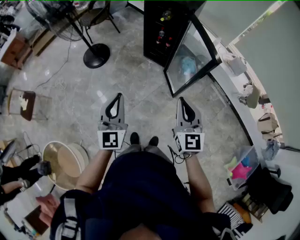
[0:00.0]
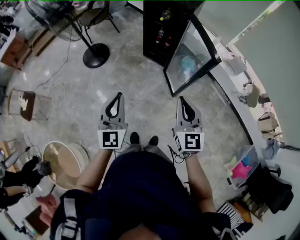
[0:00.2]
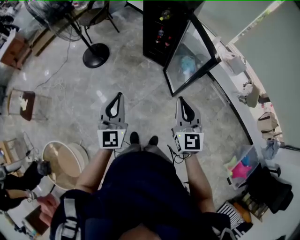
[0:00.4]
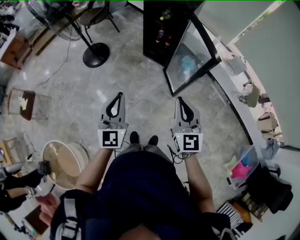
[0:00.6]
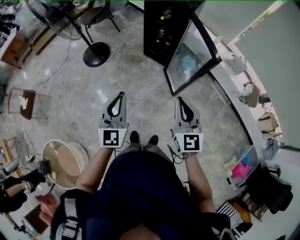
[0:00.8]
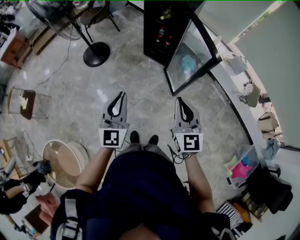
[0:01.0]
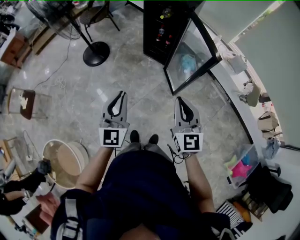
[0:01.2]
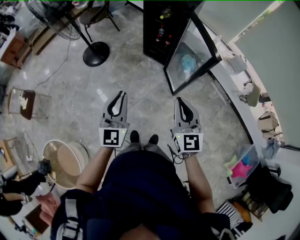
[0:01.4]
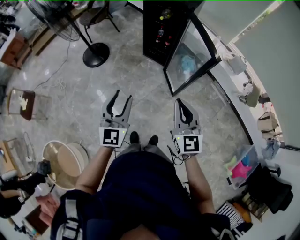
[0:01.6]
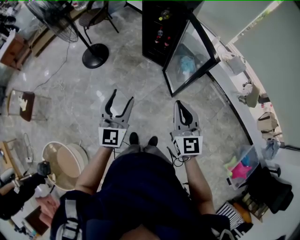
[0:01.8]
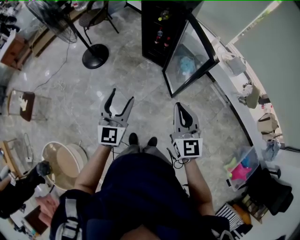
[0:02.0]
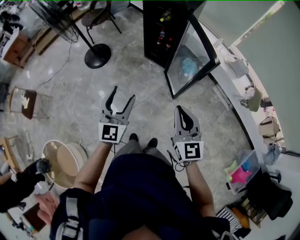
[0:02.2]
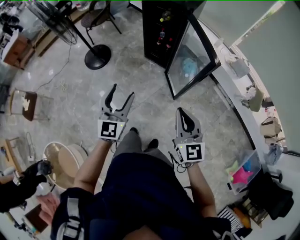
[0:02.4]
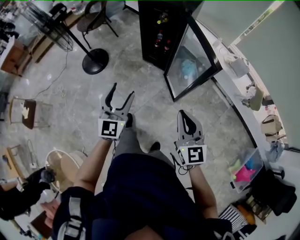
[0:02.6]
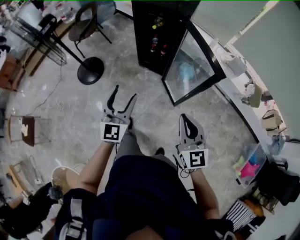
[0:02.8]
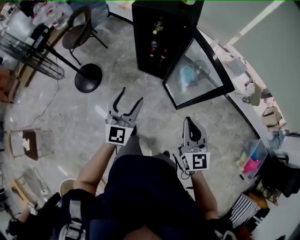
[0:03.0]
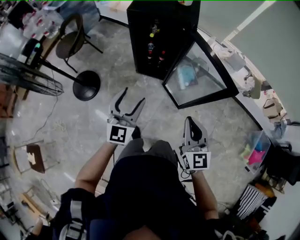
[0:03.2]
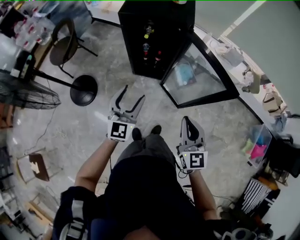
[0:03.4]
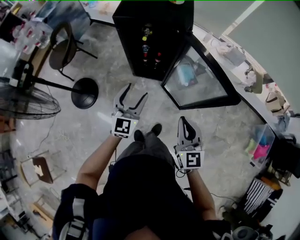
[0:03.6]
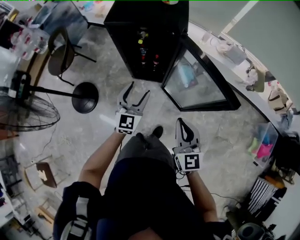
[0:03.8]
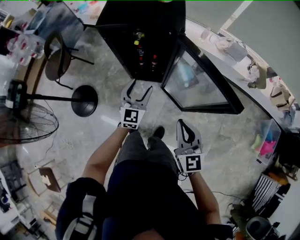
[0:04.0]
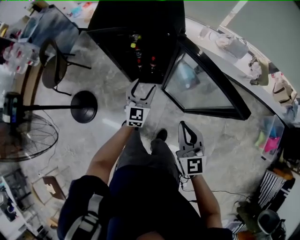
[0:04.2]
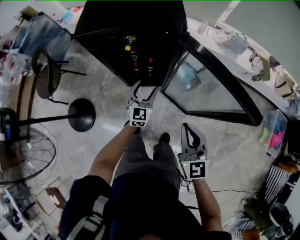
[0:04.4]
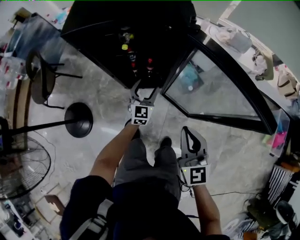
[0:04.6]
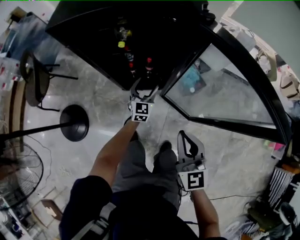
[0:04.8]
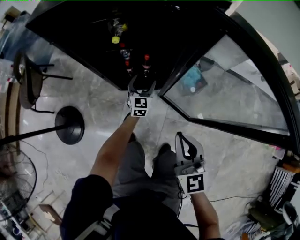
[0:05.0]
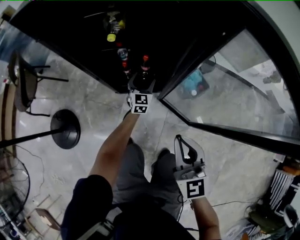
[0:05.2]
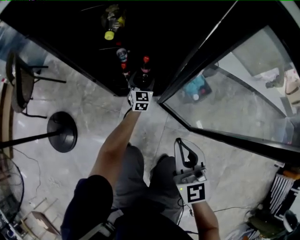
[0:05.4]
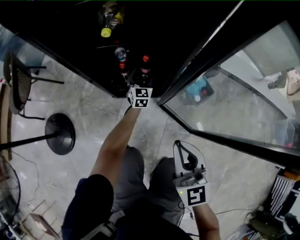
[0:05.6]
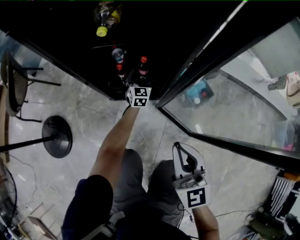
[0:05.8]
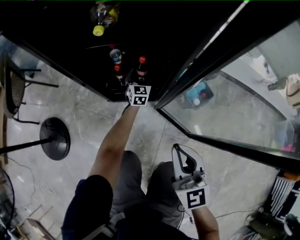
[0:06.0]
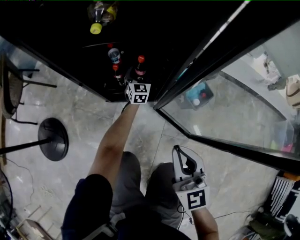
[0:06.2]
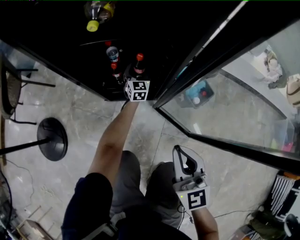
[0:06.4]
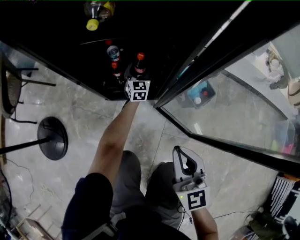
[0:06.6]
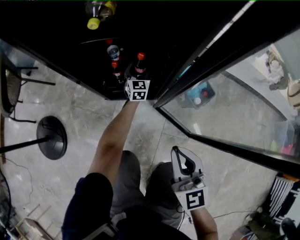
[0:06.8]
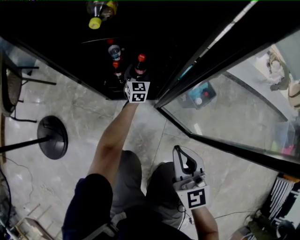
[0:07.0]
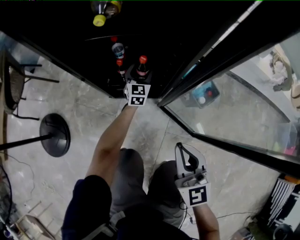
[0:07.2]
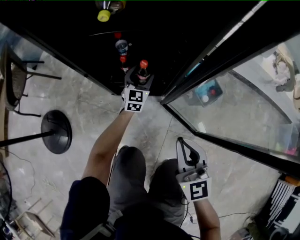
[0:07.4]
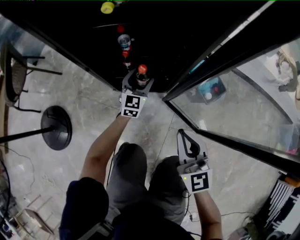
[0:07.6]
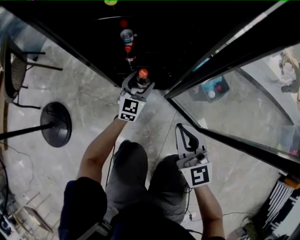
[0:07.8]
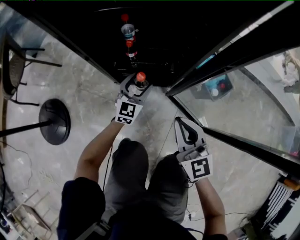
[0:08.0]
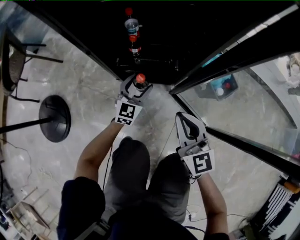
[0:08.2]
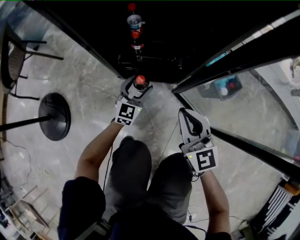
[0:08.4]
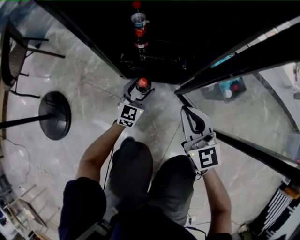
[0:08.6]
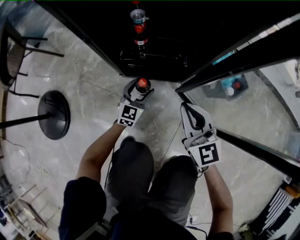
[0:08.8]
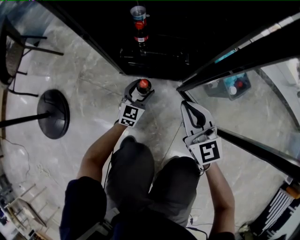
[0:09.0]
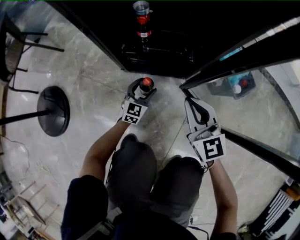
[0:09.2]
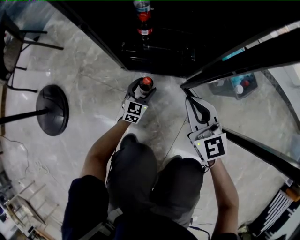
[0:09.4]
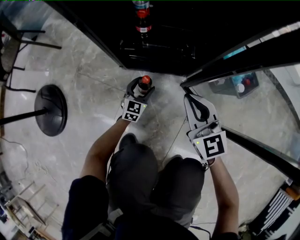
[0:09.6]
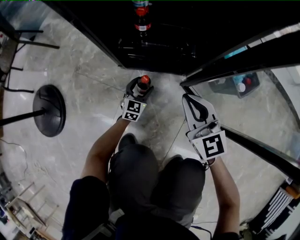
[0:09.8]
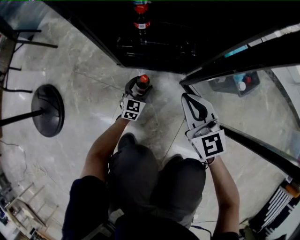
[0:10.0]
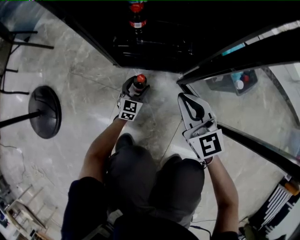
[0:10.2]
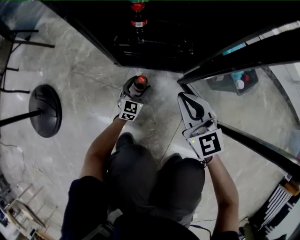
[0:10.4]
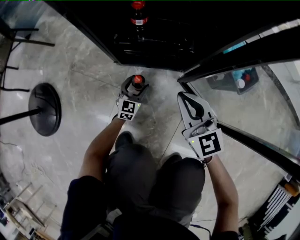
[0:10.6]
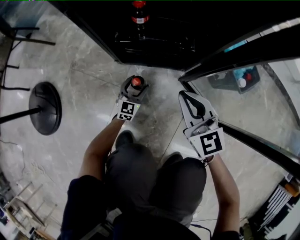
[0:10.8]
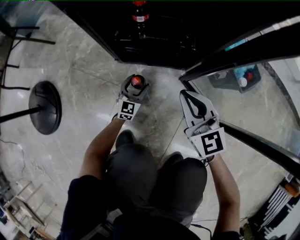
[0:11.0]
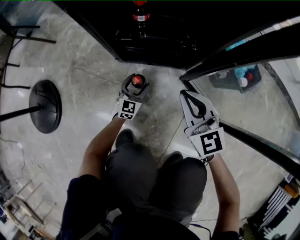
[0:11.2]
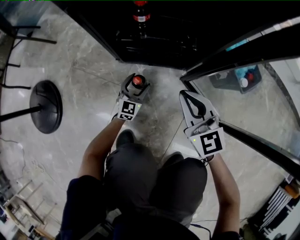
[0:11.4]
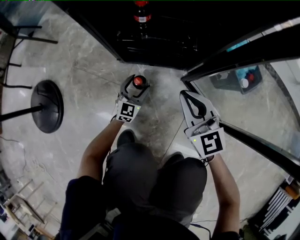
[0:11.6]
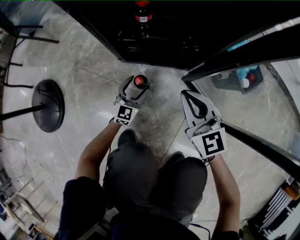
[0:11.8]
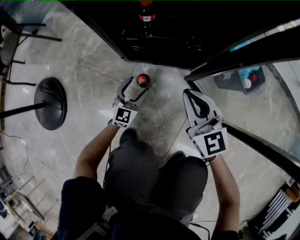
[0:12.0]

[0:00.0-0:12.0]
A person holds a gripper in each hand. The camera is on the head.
0:00.0 to 0:01.6: The left gripper opens its fingers.
0:01.6 to 0:03.0: The left gripper is displaced forward by some 25 cm, while the right gripper is displaced forward by roughly 15 cm.
0:03.0 to 0:04.4: The left gripper travels forward and downward by about 50 cm, and turns by about 20 degrees; the right gripper goes roughly 30 cm forward and downward.
0:04.4 to 0:06.0: The left gripper shifts about 50 cm downward and forward. The right gripper shifts some 30 cm downward.
0:06.0 to 0:07.6: The right gripper shifts roughly 10 cm downward, while the left gripper heads backward, covering about 10 cm.
0:07.6 to 0:09.0: The left gripper moves downward and backward, some 20 cm. Meanwhile the right gripper goes approximately 15 cm downward.
0:09.0 to 0:10.4: The right gripper goes some 5 cm downward. Meanwhile the left gripper travels downward by about 10 cm.
0:10.4 to 0:12.0: The left gripper goes about 5 cm upward.

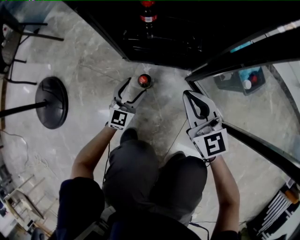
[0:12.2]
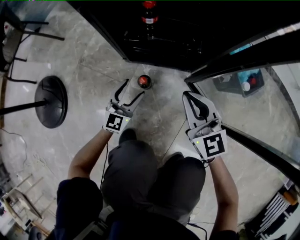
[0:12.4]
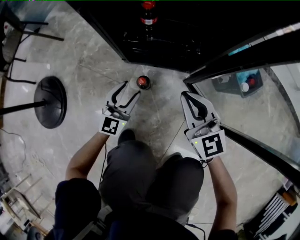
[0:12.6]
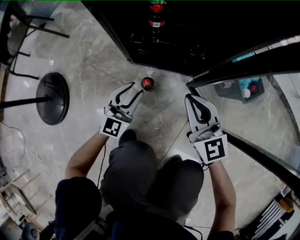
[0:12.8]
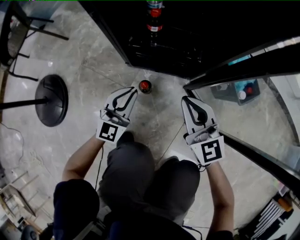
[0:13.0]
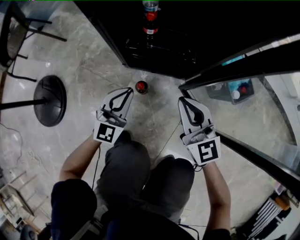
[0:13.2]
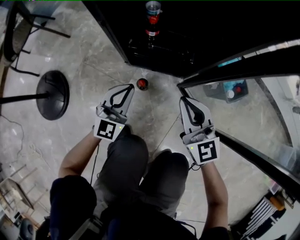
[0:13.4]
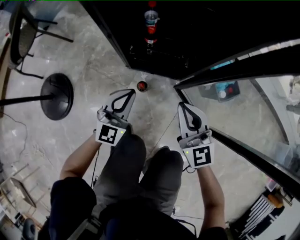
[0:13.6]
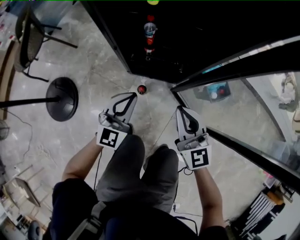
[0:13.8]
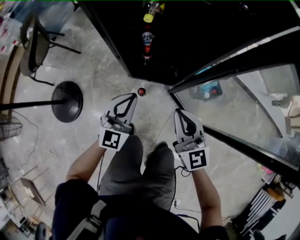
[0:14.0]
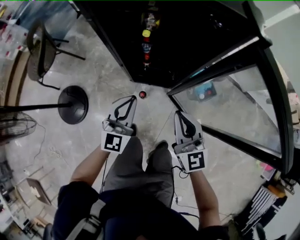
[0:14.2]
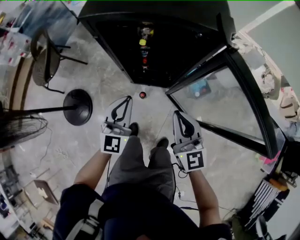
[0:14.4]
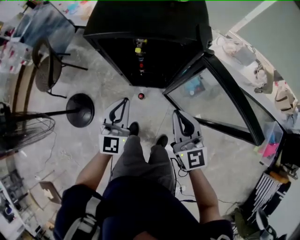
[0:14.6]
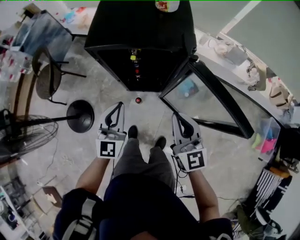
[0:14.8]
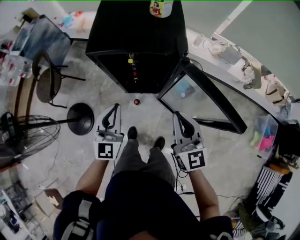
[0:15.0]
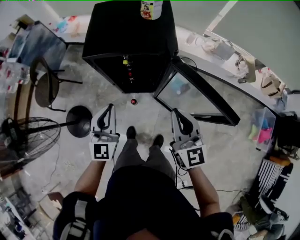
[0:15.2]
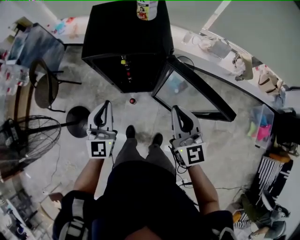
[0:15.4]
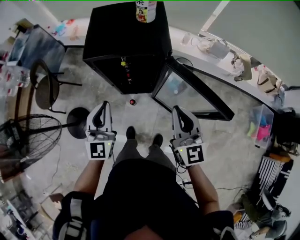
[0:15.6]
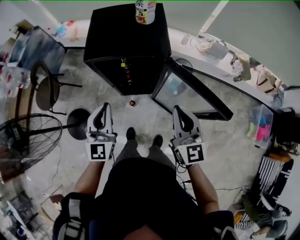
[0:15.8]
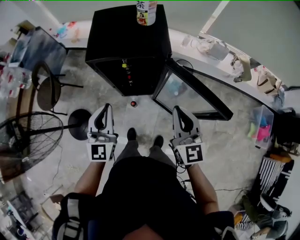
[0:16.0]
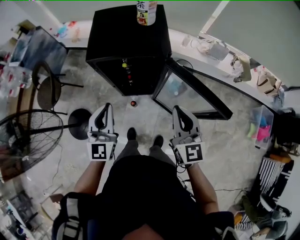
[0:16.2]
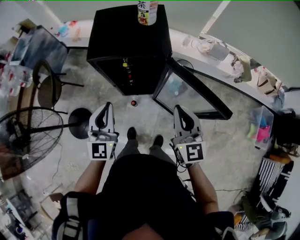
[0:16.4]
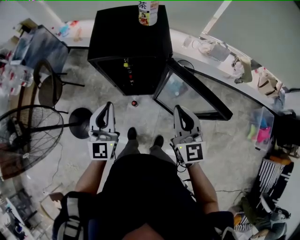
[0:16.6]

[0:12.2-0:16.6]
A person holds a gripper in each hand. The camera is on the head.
0:12.2 to 0:13.6: The right gripper travels upward by approximately 20 cm; the left gripper goes approximately 30 cm upward, and closes its fingers.
0:13.6 to 0:15.2: The two grippers go roughly 60 cm upward.
0:15.2 to 0:16.6: The left gripper heads upward, covering roughly 5 cm. The right gripper moves about 5 cm.

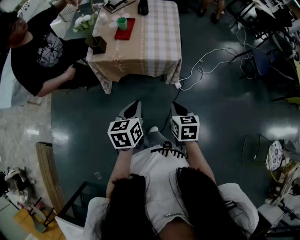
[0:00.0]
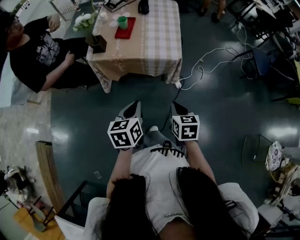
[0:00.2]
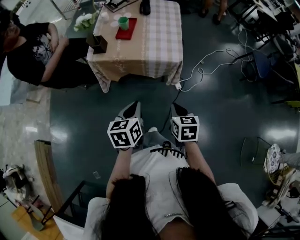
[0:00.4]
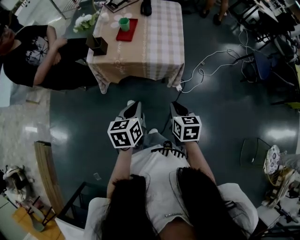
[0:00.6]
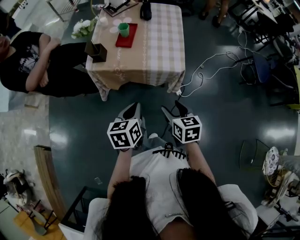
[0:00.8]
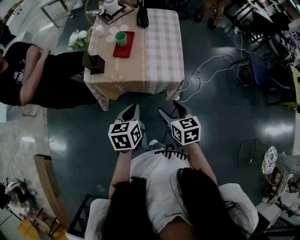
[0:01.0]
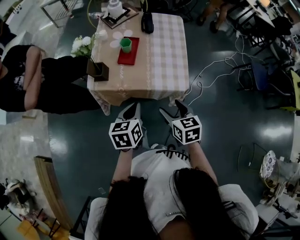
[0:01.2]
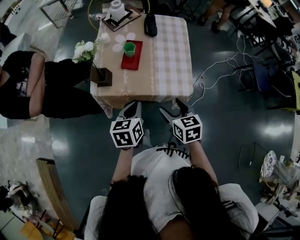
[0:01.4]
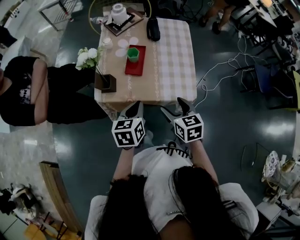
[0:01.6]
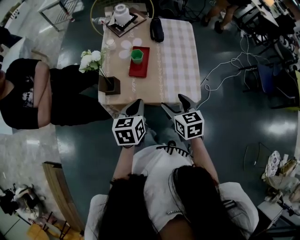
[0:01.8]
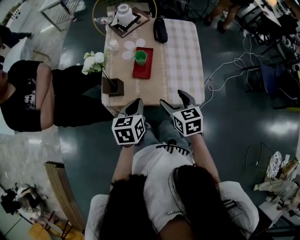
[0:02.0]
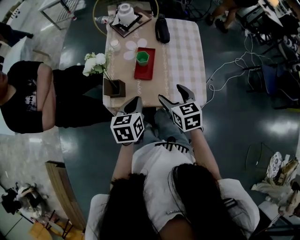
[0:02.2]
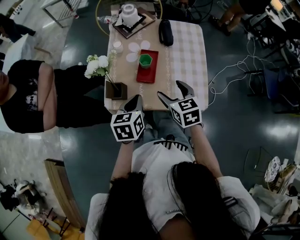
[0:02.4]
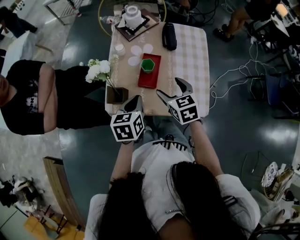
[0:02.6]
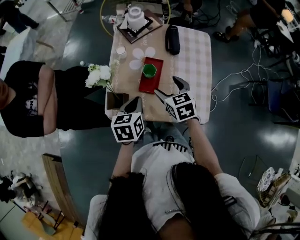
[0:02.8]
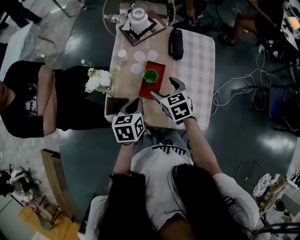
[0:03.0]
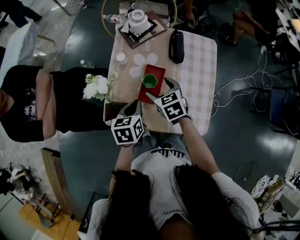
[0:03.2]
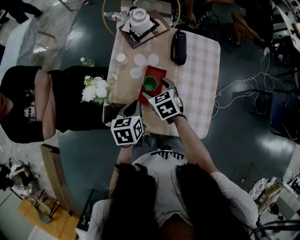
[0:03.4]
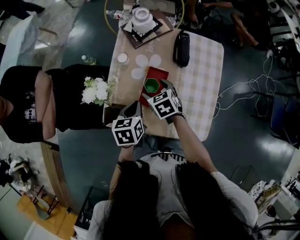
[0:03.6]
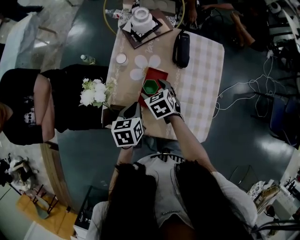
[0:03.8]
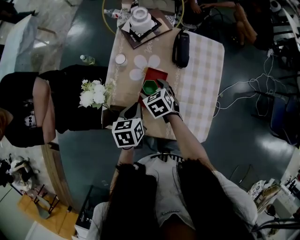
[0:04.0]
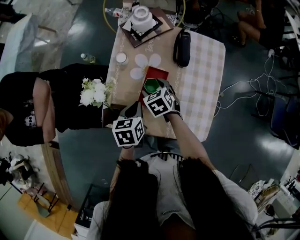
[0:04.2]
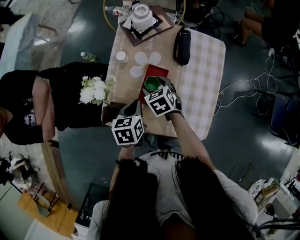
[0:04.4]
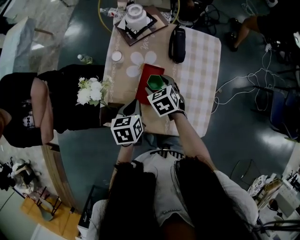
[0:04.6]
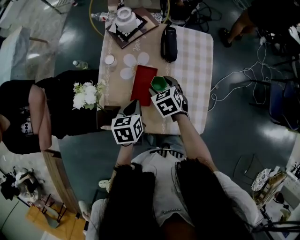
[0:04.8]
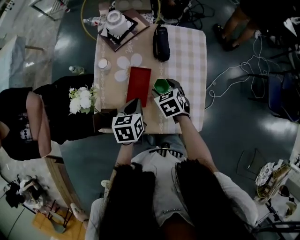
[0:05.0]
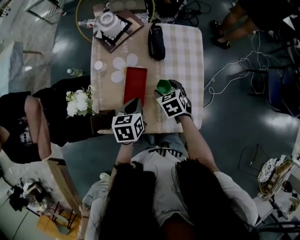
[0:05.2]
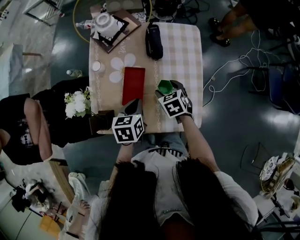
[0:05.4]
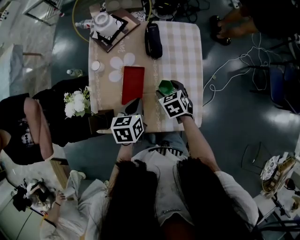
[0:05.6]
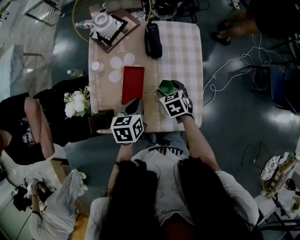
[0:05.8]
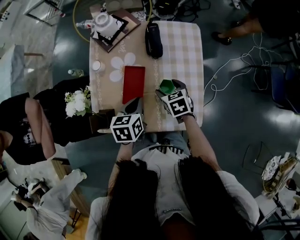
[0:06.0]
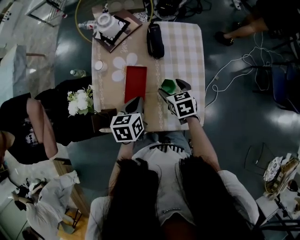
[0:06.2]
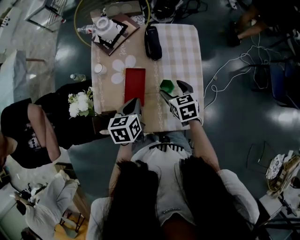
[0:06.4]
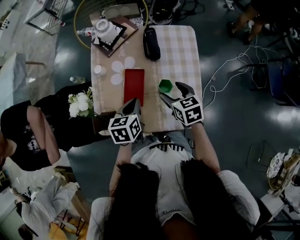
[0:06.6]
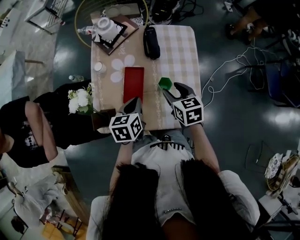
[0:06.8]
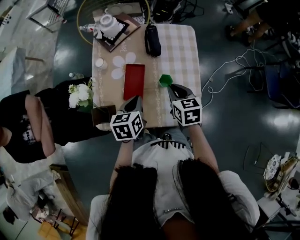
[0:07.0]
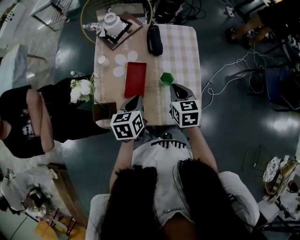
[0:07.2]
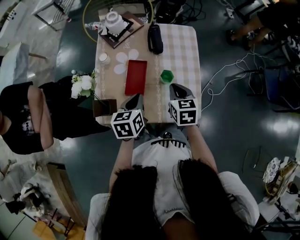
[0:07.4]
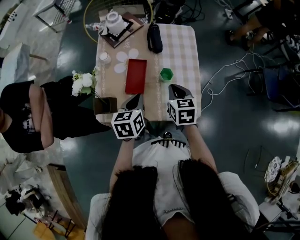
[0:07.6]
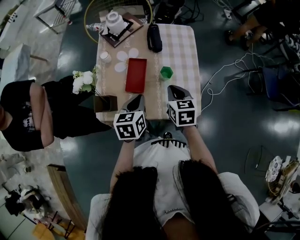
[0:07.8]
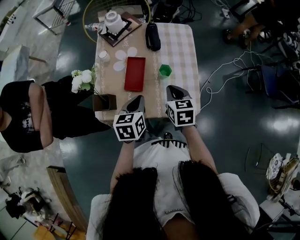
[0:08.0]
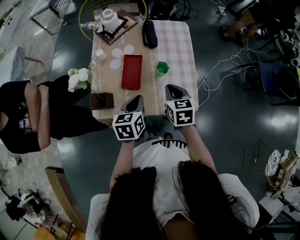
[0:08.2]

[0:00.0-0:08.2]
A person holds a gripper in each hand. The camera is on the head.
0:00.0 to 0:01.6: The grippers both shift forward and to the left by approximately 20 cm. The right gripper opens.
0:01.6 to 0:03.2: The left gripper moves forward, approximately 20 cm; the right gripper shifts approximately 30 cm forward and to the left, and swivels roughly 20 degrees.
0:03.2 to 0:05.0: Both grippers move to the right, some 10 cm.
0:05.0 to 0:06.6: The right gripper is displaced to the right and upward by roughly 10 cm, and changes its angle by about 20 degrees.
0:06.6 to 0:08.2: The two grippers go some 10 cm backward. The right gripper closes up.
